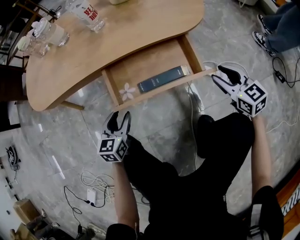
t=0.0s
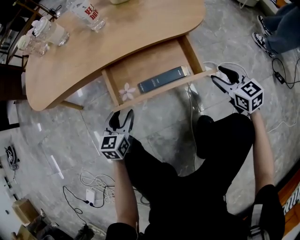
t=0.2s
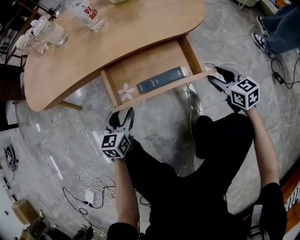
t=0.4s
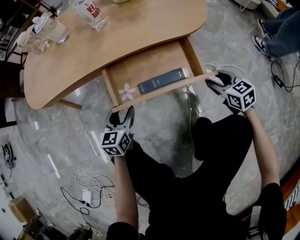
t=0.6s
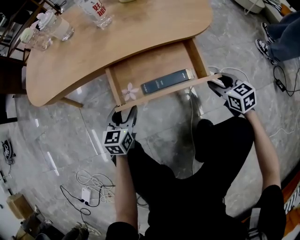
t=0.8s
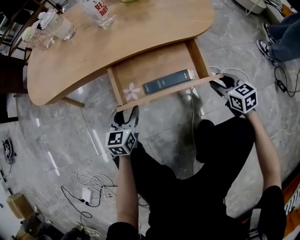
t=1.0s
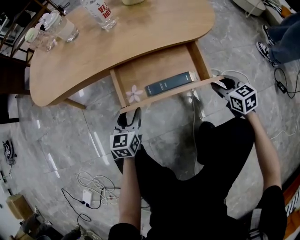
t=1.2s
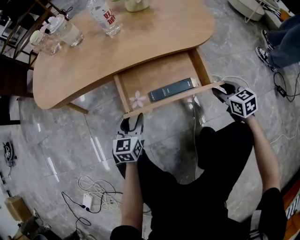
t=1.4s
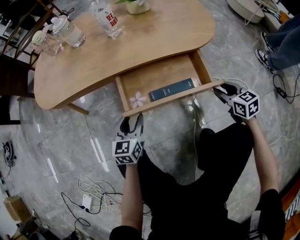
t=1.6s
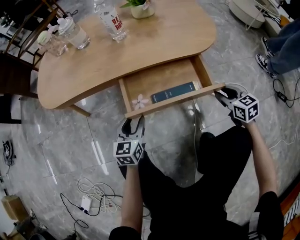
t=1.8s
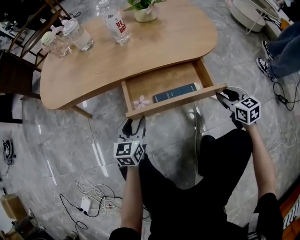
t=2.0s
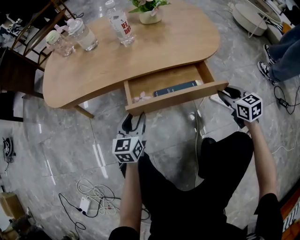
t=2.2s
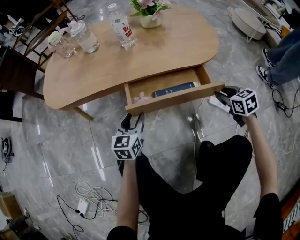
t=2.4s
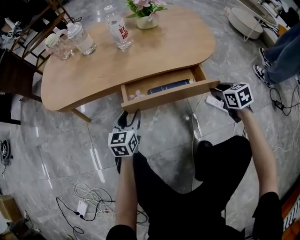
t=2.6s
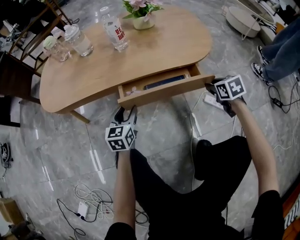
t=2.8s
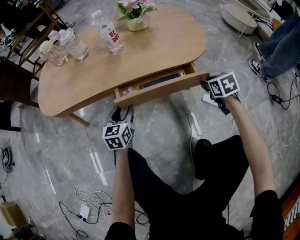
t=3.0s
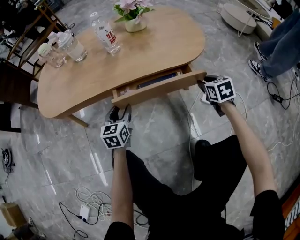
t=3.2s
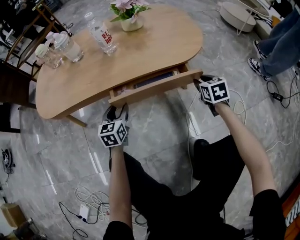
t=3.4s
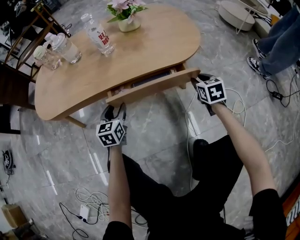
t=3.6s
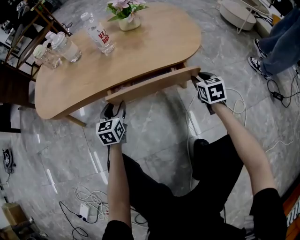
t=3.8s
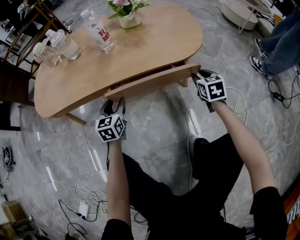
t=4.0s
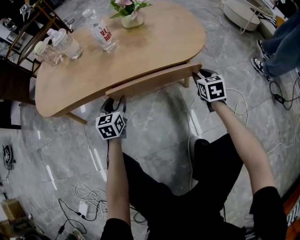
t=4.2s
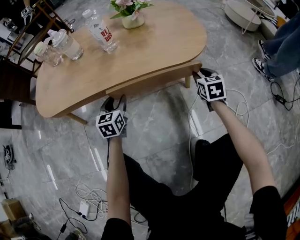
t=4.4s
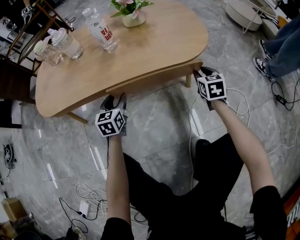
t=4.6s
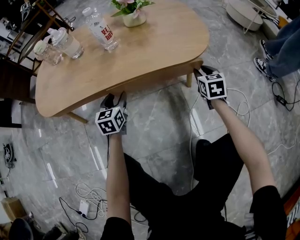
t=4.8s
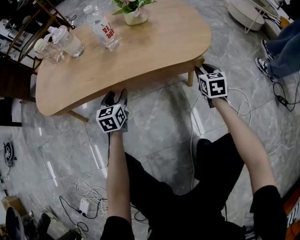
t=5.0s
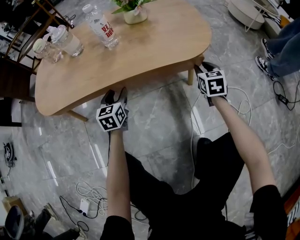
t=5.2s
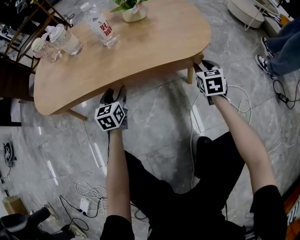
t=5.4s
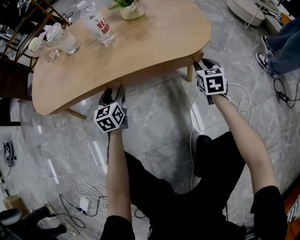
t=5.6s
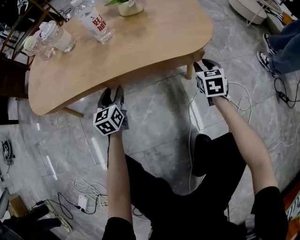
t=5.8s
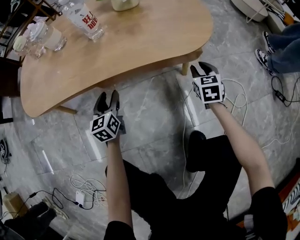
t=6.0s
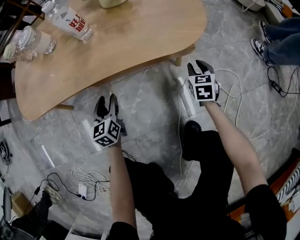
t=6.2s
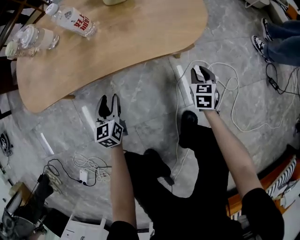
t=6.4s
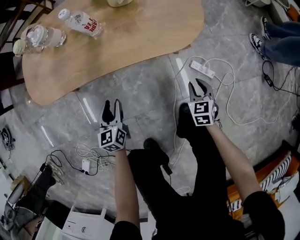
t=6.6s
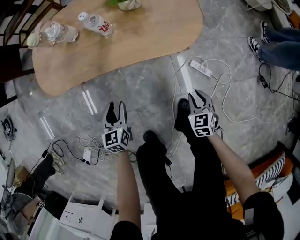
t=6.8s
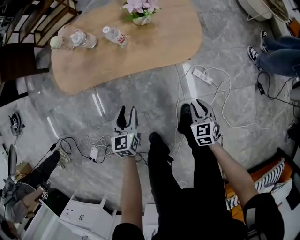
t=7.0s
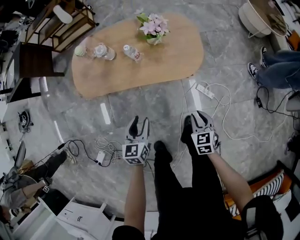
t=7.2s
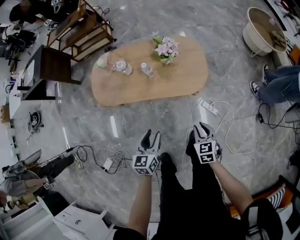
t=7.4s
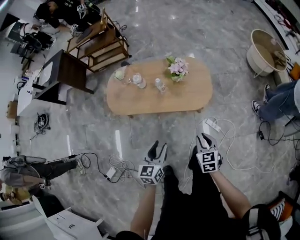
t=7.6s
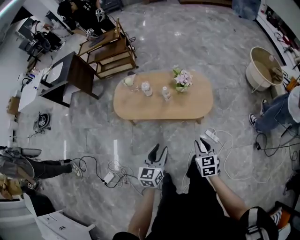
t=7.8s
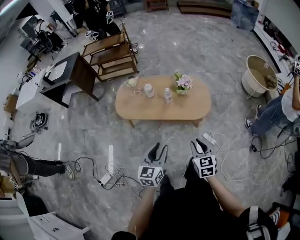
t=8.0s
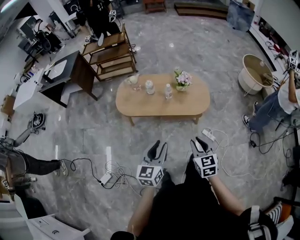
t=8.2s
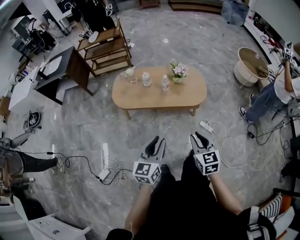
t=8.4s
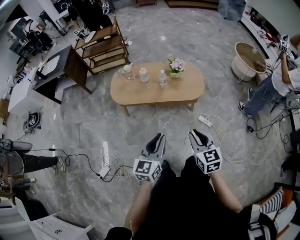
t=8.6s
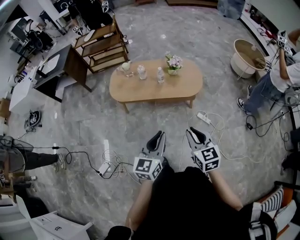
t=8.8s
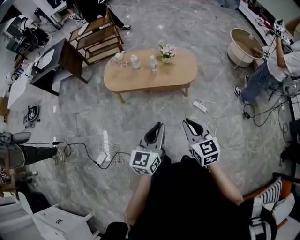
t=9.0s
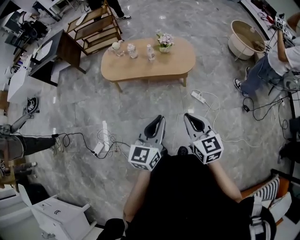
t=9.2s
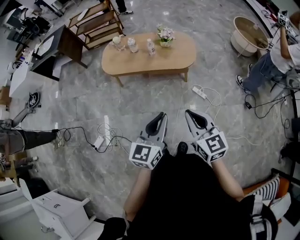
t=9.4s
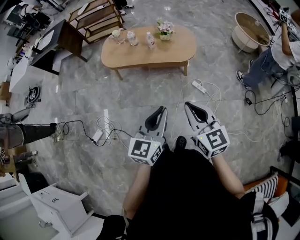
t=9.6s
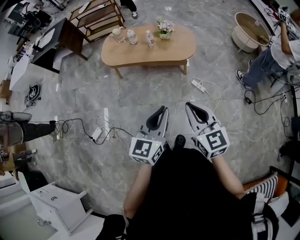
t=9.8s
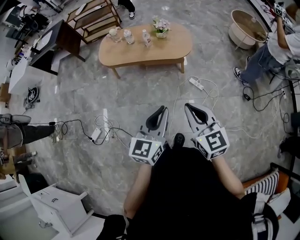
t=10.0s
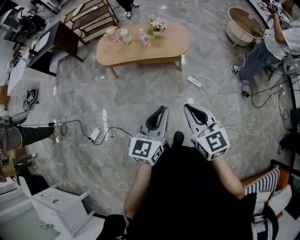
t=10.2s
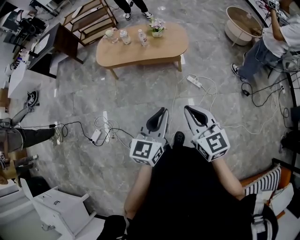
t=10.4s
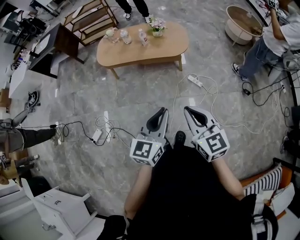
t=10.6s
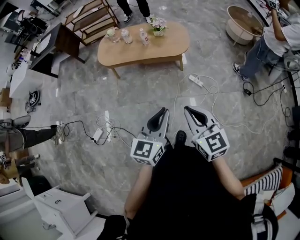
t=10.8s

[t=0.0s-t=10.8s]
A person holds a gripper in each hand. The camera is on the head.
t=0.0s to t=1.6s: The right gripper travels downward by approximately 5 cm.
t=1.6s to t=3.0s: Both grippers travel together forward, roughly 10 cm.
t=3.0s to t=4.6s: The two grippers go some 5 cm forward.
t=4.6s to t=6.2s: The right gripper travels downward by some 5 cm.
t=6.2s to t=7.8s: Both grippers travel together upward, about 60 cm. The right gripper swivels roughly 20 degrees.
t=7.8s to t=9.2s: The two grippers go about 30 cm backward and upward. The left gripper closes.
t=9.2s to t=10.8s: The left gripper is displaced backward and to the right by approximately 15 cm. Meanwhile the right gripper goes some 10 cm backward.

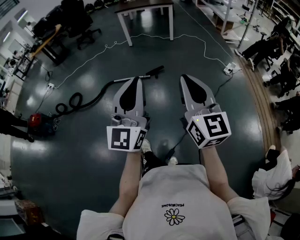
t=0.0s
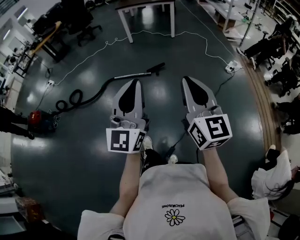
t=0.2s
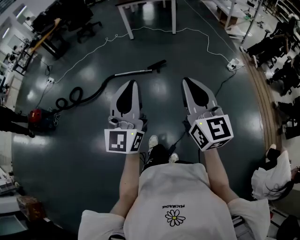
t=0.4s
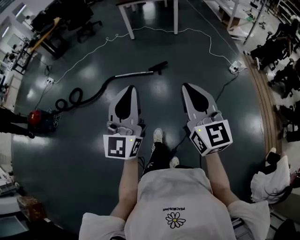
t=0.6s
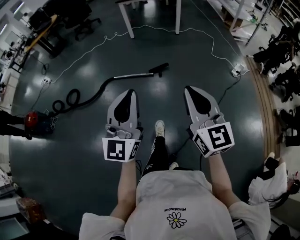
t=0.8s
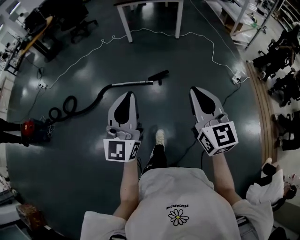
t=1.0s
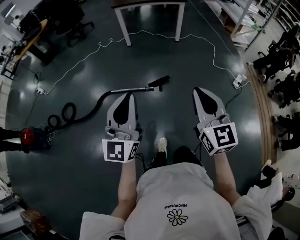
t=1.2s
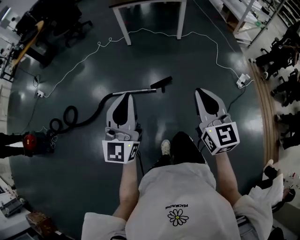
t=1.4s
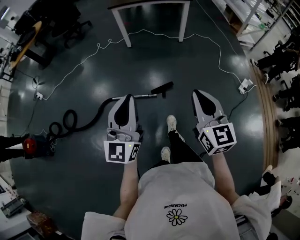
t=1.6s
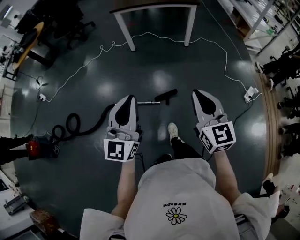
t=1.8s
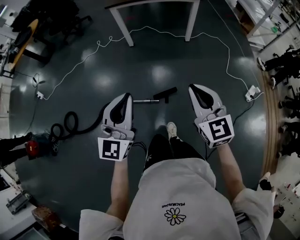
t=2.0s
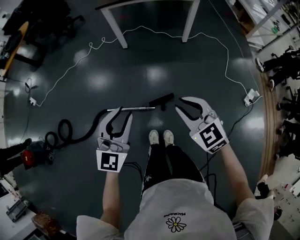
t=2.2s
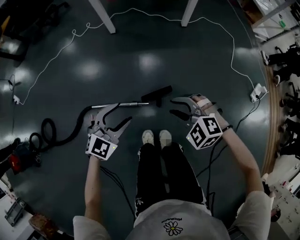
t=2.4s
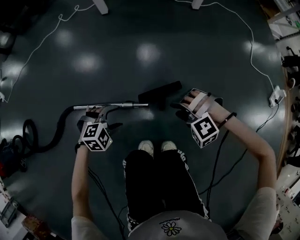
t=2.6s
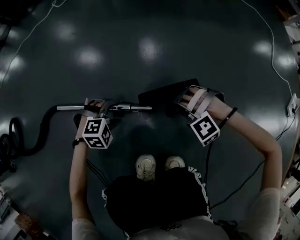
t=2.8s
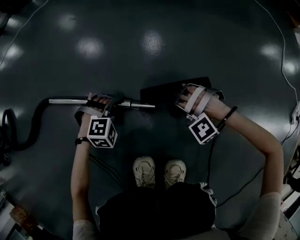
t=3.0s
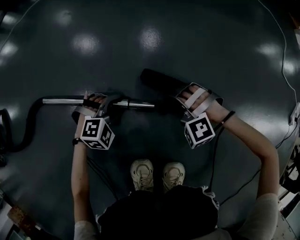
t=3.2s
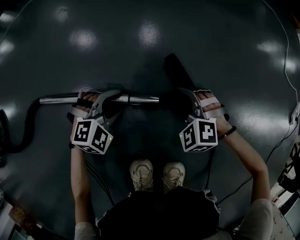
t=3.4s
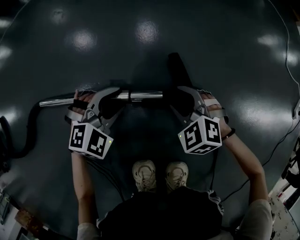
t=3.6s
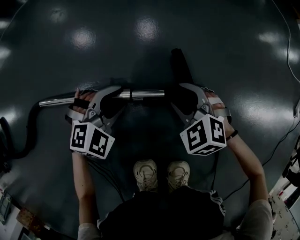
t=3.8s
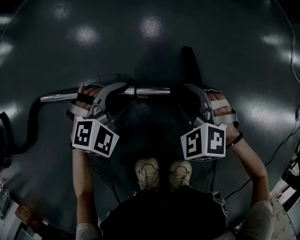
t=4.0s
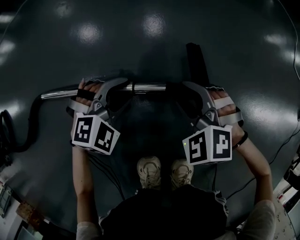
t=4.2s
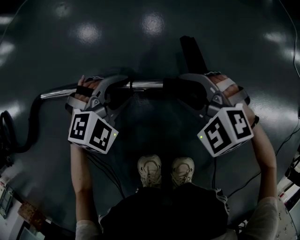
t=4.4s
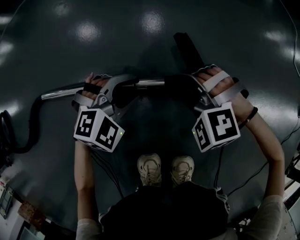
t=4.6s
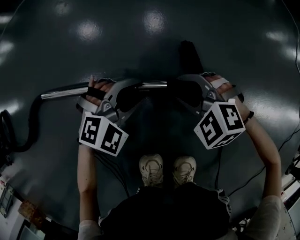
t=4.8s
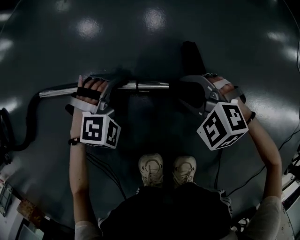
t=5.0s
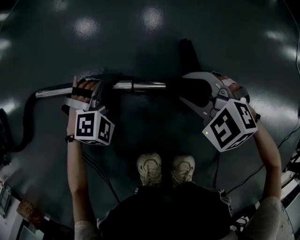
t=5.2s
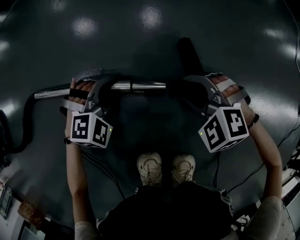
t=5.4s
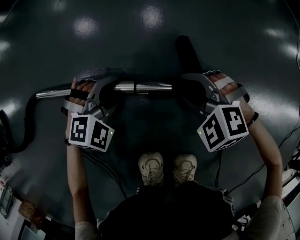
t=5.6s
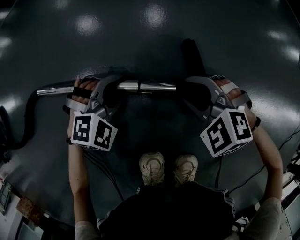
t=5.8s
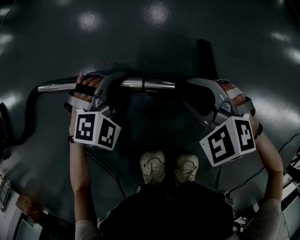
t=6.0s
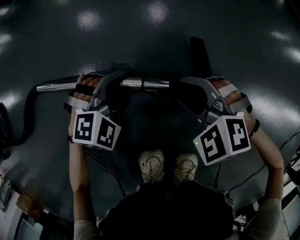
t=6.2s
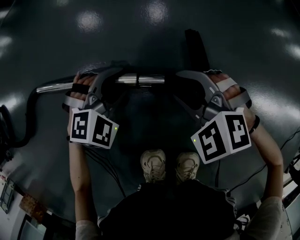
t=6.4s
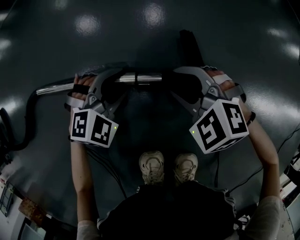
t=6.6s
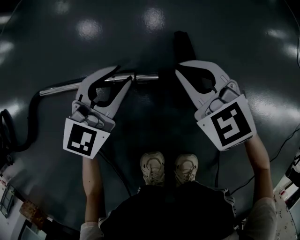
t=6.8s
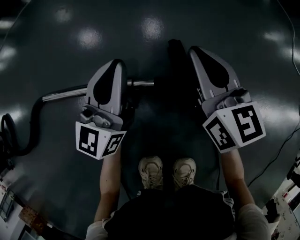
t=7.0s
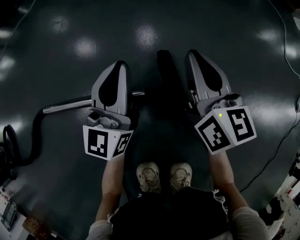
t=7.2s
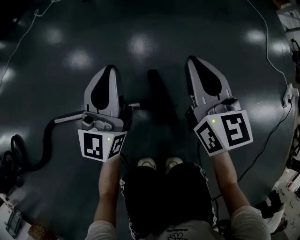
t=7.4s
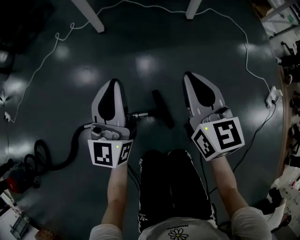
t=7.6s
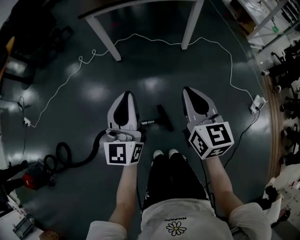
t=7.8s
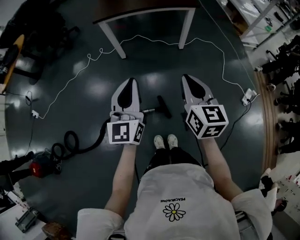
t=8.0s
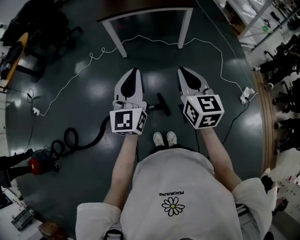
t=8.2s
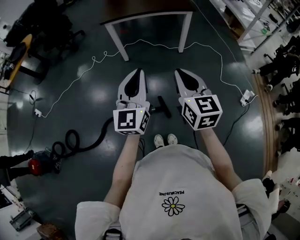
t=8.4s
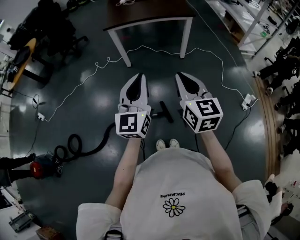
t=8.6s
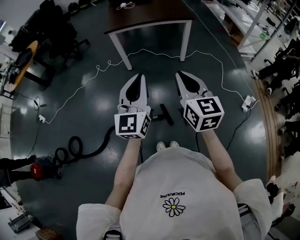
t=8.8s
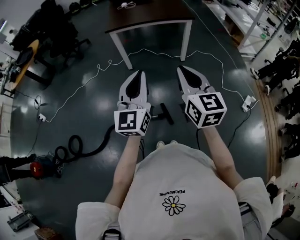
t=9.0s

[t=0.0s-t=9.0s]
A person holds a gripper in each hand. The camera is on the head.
t=0.0s to t=1.6s: Both grippers are carried forward, some 50 cm.
t=1.6s to t=3.0s: The two grippers go roughly 1 m downward. The right gripper rotates around the line of its fingers by approximately 100 degrees, counterclockwise from behind, and opens up; the left gripper points its fingers approximately 80 degrees further downward, and opens up.
t=3.0s to t=4.4s: The grippers both shift upward by some 5 cm. The right gripper rolls clockwise, seen from behind, by about 50 degrees, while the left gripper swivels roughly 20 degrees.
t=6.0s to t=7.6s: The two grippers go approximately 50 cm upward. The left gripper angles its fingers upward, by roughly 70 degrees, and closes up, while the right gripper angles its fingers upward, by about 40 degrees, and closes its fingers.
t=7.6s to t=9.0s: The grippers both shift upward by approximately 50 cm.

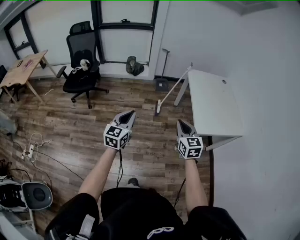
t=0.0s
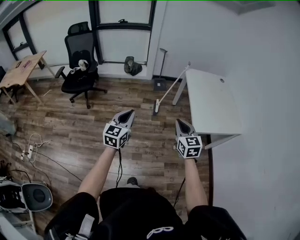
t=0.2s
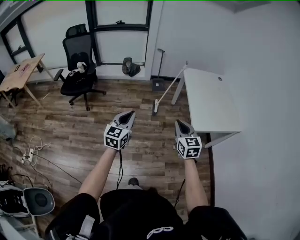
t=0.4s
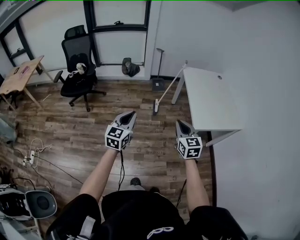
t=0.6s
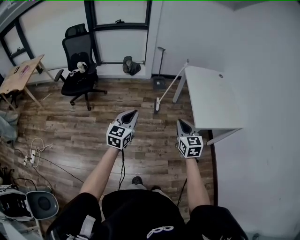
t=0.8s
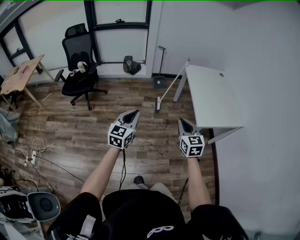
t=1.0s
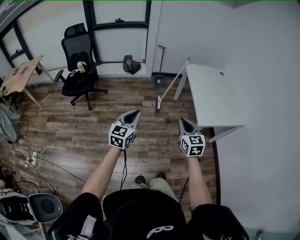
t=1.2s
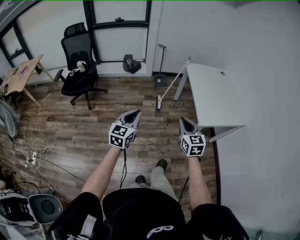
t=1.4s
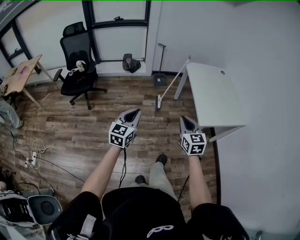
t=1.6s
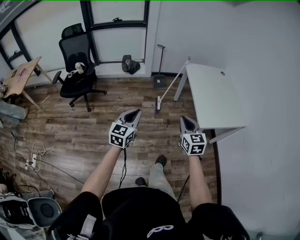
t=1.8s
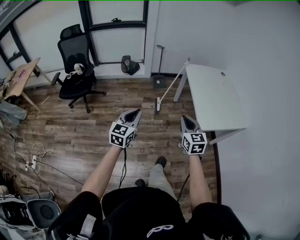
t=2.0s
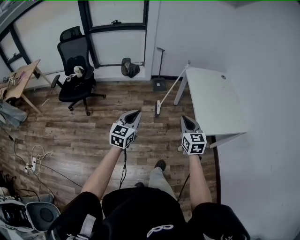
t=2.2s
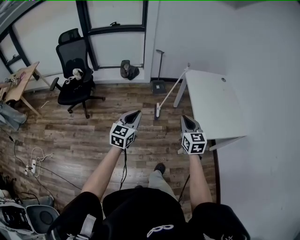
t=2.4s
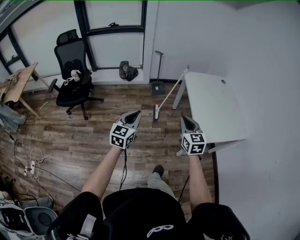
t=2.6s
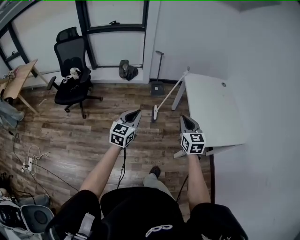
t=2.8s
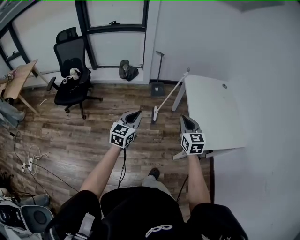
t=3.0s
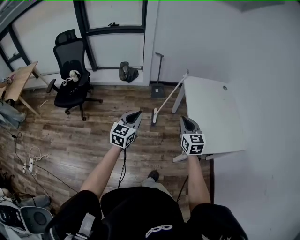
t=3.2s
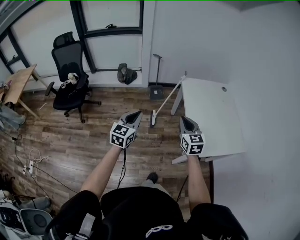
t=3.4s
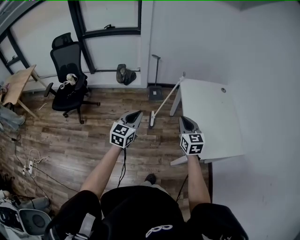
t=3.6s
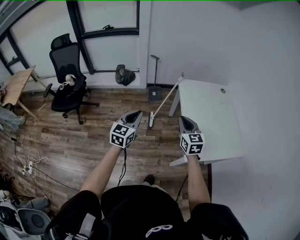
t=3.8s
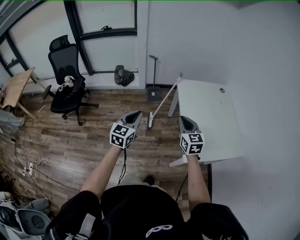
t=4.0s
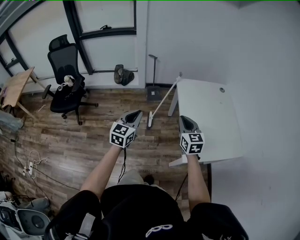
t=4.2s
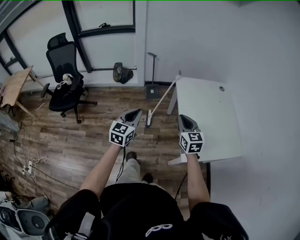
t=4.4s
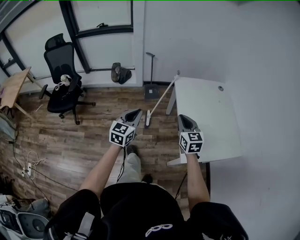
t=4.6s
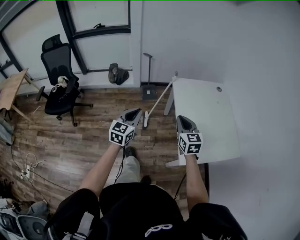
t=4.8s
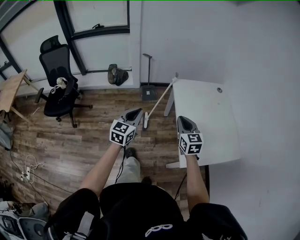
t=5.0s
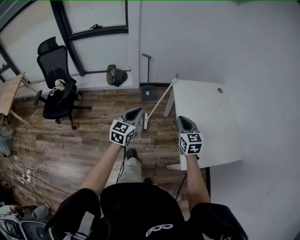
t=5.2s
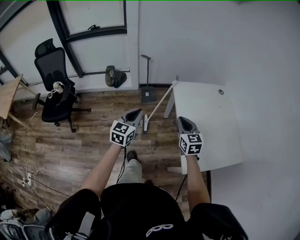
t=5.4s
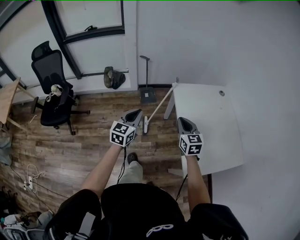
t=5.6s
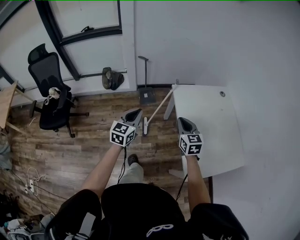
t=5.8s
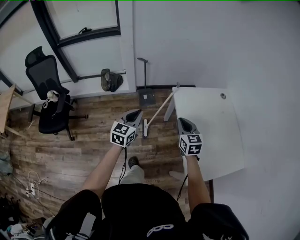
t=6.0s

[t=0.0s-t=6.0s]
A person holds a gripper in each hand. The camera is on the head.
t=0.0s to t=1.6s: The grippers move only a little.
t=1.6s to t=3.0s: The grippers both shift forward by approximately 20 cm.
t=3.0s to t=4.4s: The grippers both shift forward and to the right by some 15 cm.
t=4.4s to t=6.0s: Both grippers travel together forward, approximately 25 cm.
